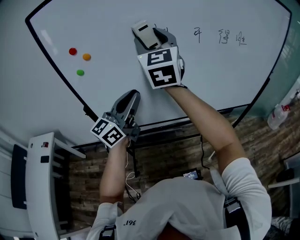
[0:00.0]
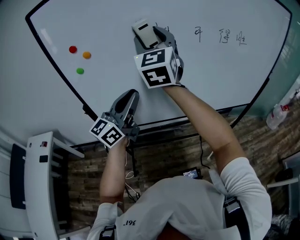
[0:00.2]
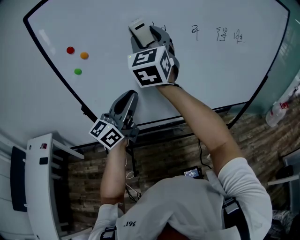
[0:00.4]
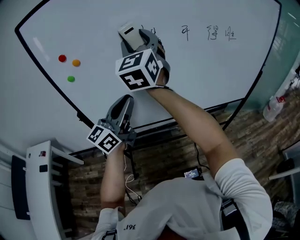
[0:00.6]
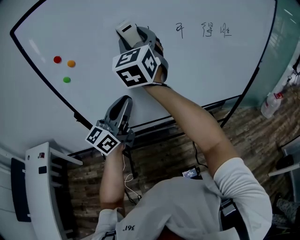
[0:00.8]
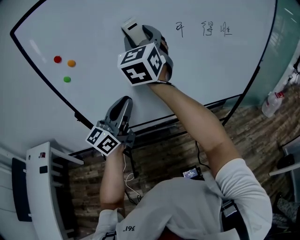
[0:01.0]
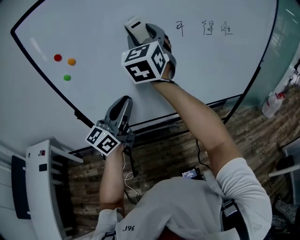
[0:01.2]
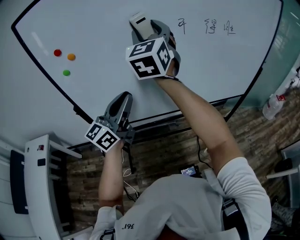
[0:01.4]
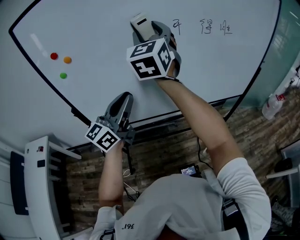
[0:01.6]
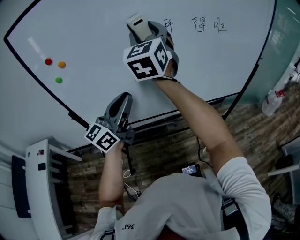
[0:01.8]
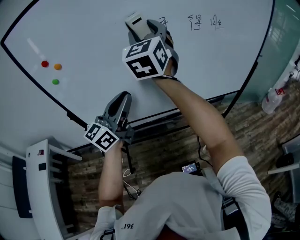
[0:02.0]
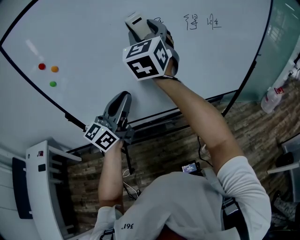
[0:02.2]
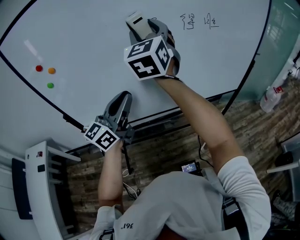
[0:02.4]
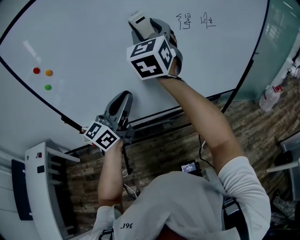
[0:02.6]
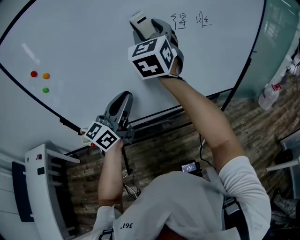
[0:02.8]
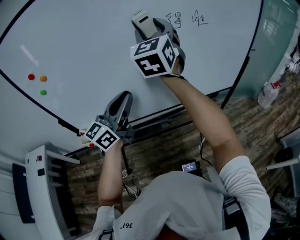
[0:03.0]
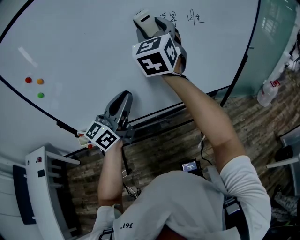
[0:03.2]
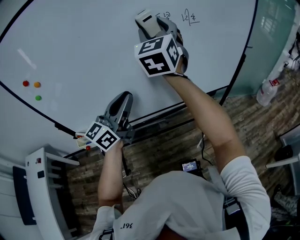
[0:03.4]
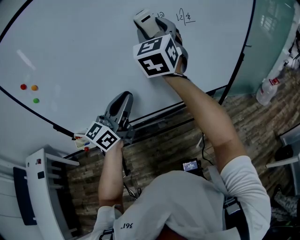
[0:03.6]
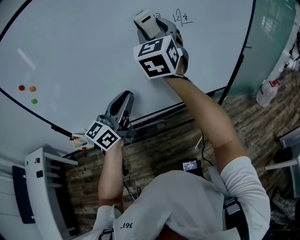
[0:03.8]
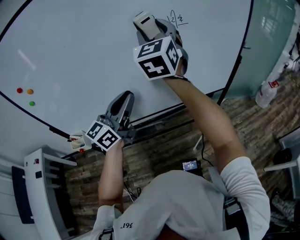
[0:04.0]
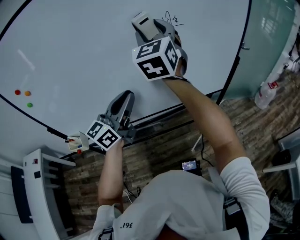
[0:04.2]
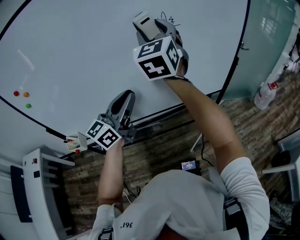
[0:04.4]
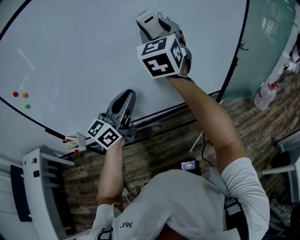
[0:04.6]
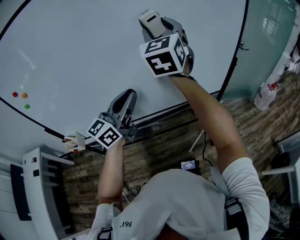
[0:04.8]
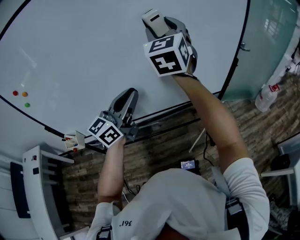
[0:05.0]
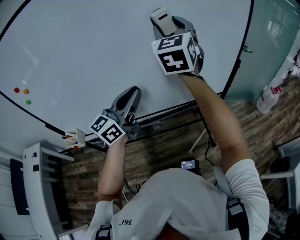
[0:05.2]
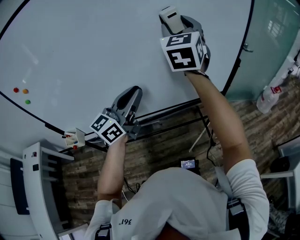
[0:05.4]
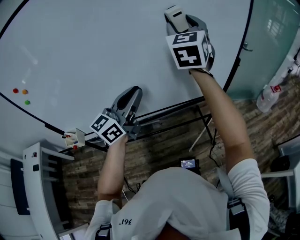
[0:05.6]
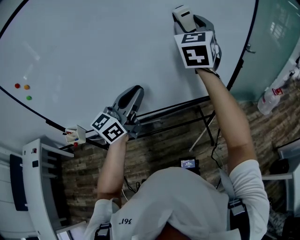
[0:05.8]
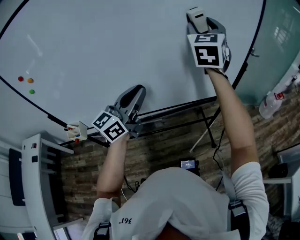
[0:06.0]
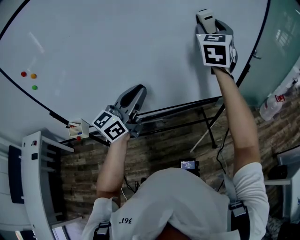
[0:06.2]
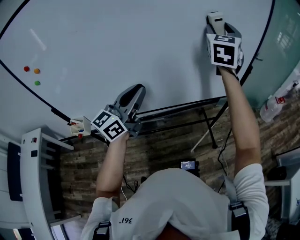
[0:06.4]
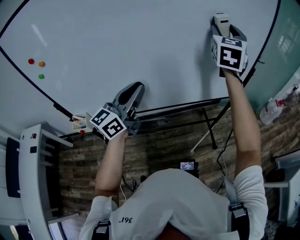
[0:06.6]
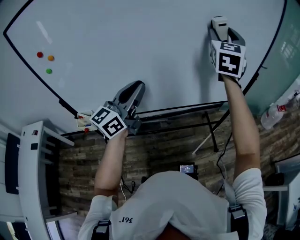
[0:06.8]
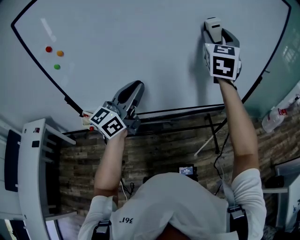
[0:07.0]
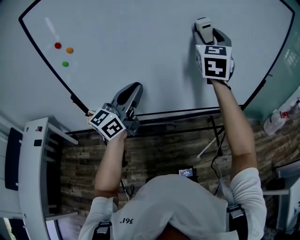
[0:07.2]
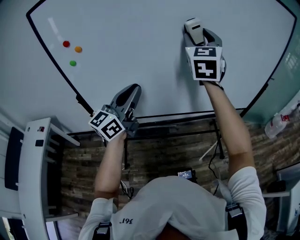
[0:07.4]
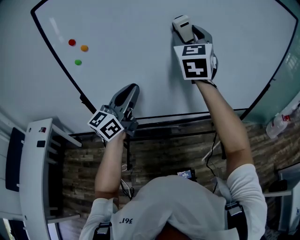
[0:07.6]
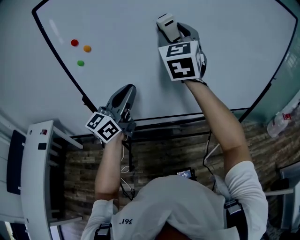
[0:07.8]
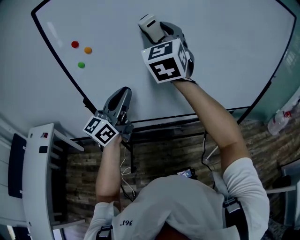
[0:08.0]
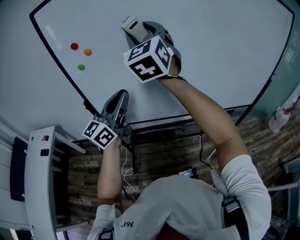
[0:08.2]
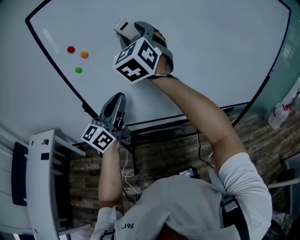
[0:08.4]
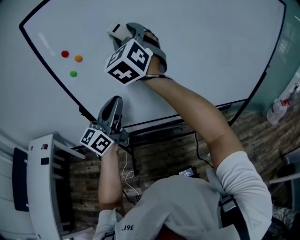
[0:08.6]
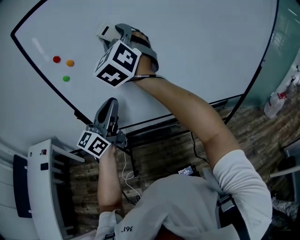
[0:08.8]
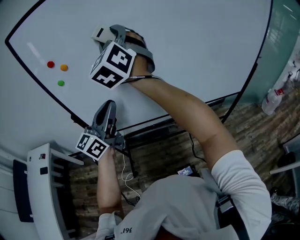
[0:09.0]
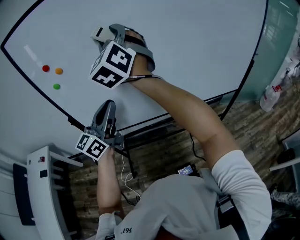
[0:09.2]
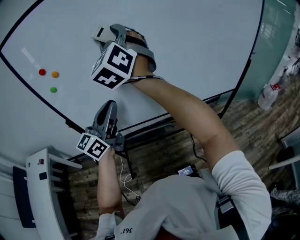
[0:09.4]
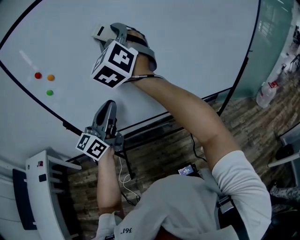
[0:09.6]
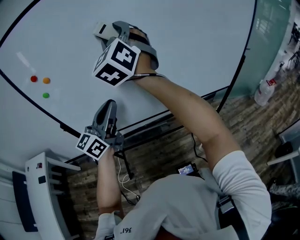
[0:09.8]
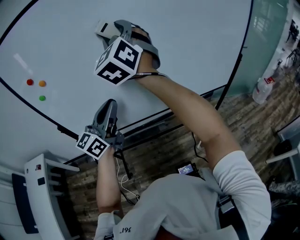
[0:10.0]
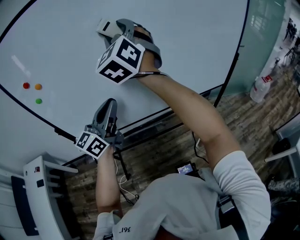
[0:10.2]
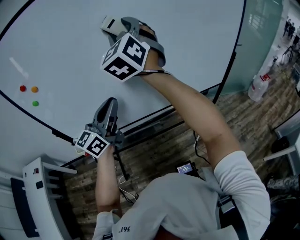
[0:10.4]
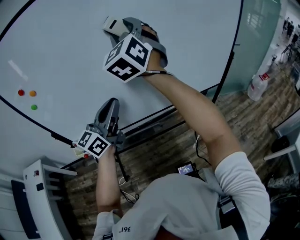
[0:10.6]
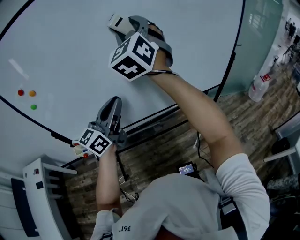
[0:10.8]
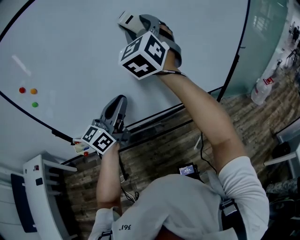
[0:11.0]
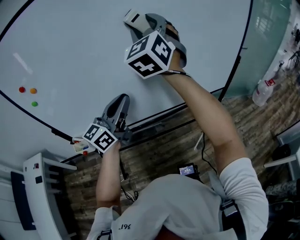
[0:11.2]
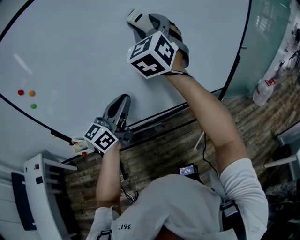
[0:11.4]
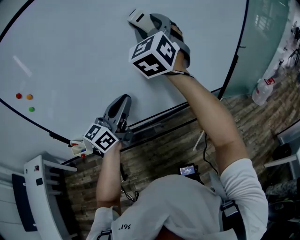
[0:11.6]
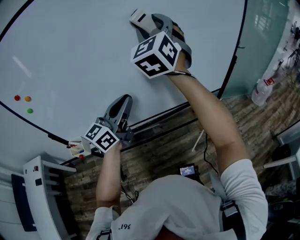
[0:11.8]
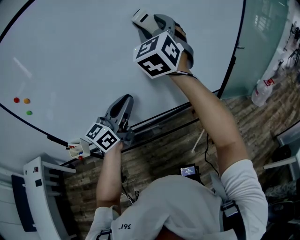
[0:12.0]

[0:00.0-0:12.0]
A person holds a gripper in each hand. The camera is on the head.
0:00.0 to 0:01.6: The right gripper travels to the right by approximately 5 cm.
0:01.6 to 0:03.0: Both grippers move to the right and forward, some 10 cm.
0:03.0 to 0:04.4: Both grippers travel together to the right and forward, approximately 15 cm.
0:04.4 to 0:06.0: The right gripper heads to the right and forward, covering approximately 15 cm.
0:06.0 to 0:07.6: Both grippers move to the left and backward, approximately 30 cm.
0:07.6 to 0:09.0: The right gripper shifts roughly 20 cm to the left, while the left gripper moves to the left, about 5 cm.
0:09.0 to 0:10.4: The left gripper is displaced to the right and forward by approximately 15 cm. Meanwhile the right gripper travels to the right by about 20 cm.
0:10.4 to 0:12.0: The grippers both shift to the right and forward by some 15 cm.

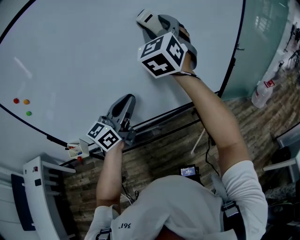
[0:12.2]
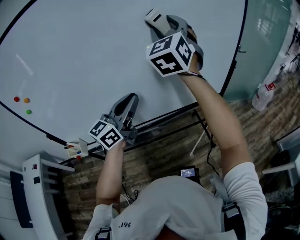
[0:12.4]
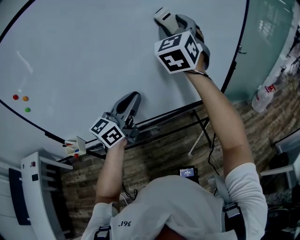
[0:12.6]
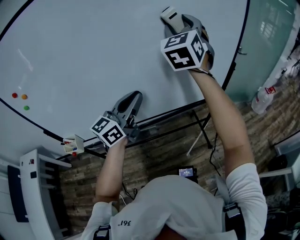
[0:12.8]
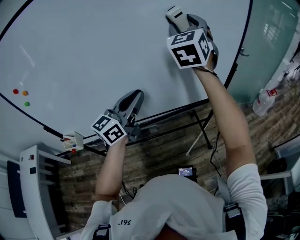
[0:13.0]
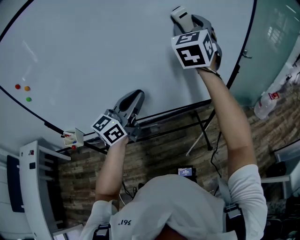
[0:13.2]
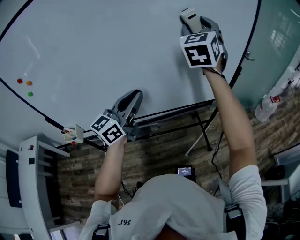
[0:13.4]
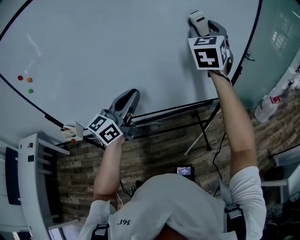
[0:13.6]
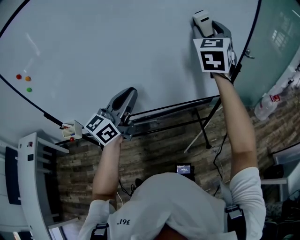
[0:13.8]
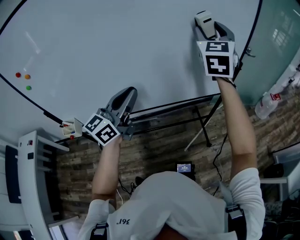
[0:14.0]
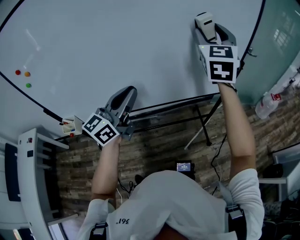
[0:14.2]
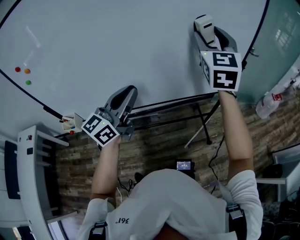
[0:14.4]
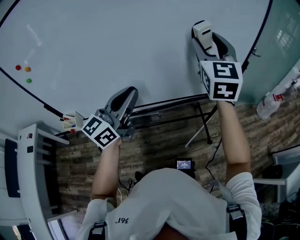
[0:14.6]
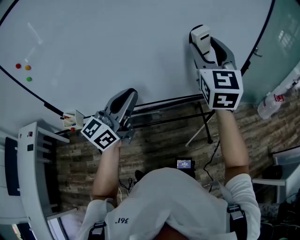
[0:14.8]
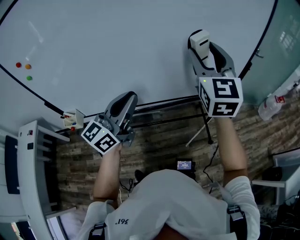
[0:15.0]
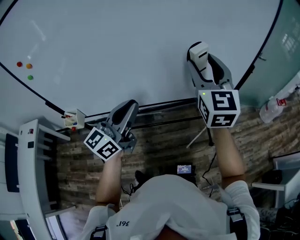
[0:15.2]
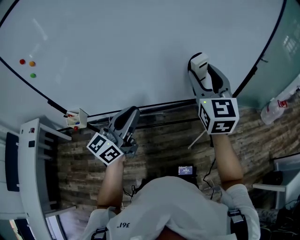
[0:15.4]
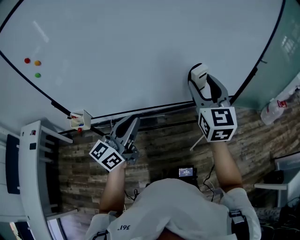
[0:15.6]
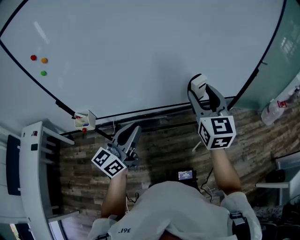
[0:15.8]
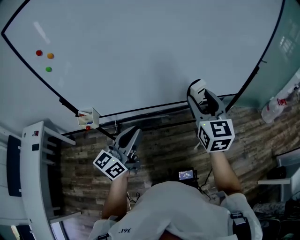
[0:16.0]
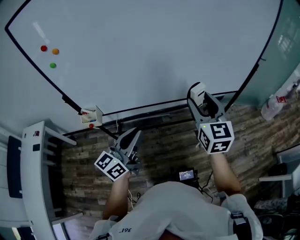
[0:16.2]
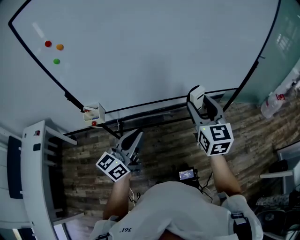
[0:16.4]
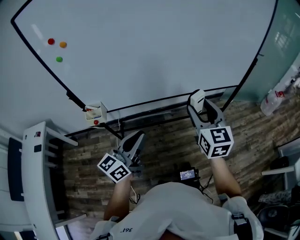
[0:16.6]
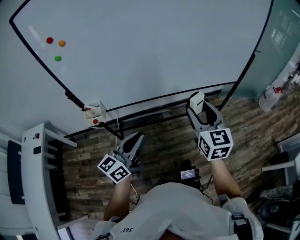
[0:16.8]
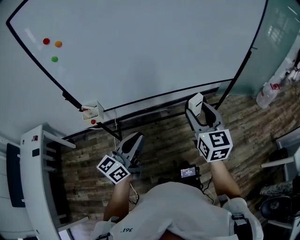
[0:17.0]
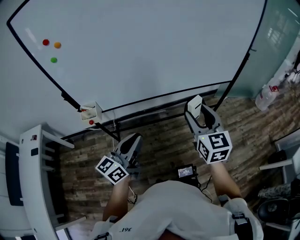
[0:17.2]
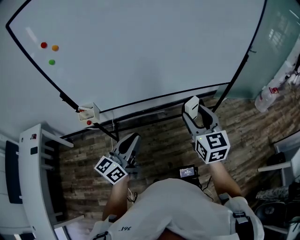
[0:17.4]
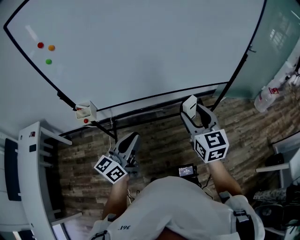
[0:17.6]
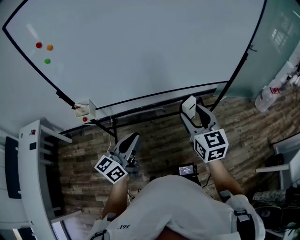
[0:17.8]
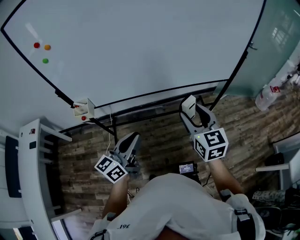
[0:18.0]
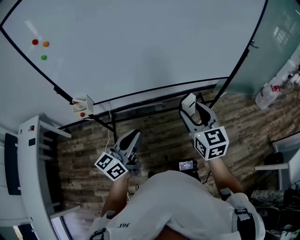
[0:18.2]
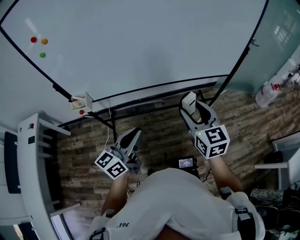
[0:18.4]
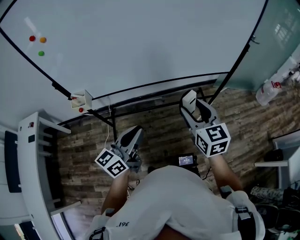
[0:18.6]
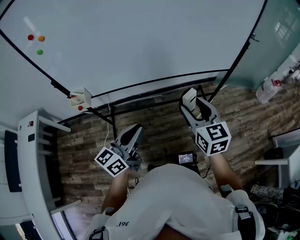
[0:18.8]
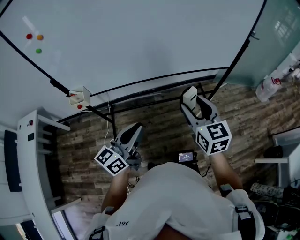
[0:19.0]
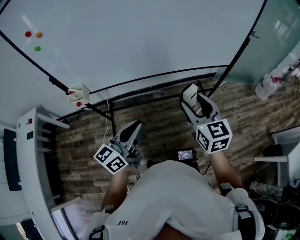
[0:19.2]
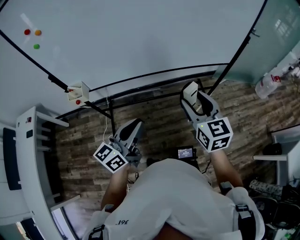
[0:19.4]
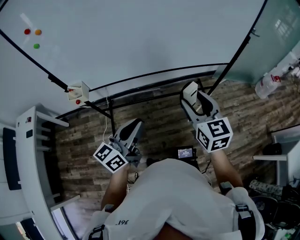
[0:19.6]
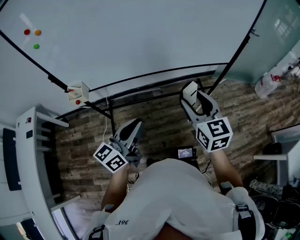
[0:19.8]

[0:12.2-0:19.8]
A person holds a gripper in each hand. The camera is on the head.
0:12.2 to 0:13.8: The right gripper is displaced to the right by about 15 cm.
0:13.8 to 0:15.2: The left gripper goes approximately 5 cm backward. The right gripper is displaced downward, backward and to the left by roughly 15 cm, and swivels roughly 20 degrees.
0:15.2 to 0:16.8: The right gripper is displaced backward, downward and to the left by some 30 cm. The left gripper heads backward, to the left and downward, covering approximately 25 cm.
0:16.8 to 0:18.2: Both grippers move to the right, about 10 cm.
0:18.2 to 0:19.8: The grippers make only small movements.

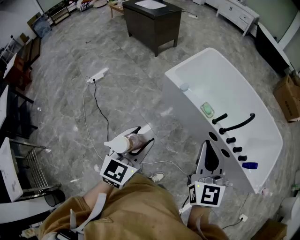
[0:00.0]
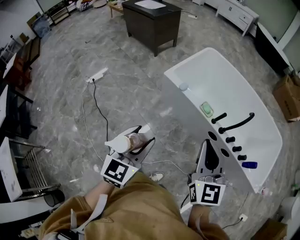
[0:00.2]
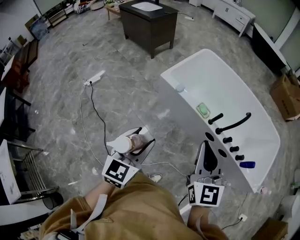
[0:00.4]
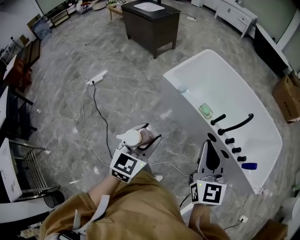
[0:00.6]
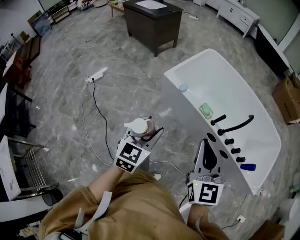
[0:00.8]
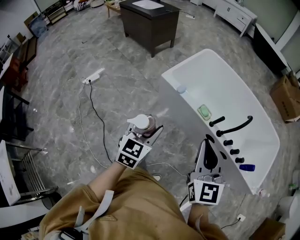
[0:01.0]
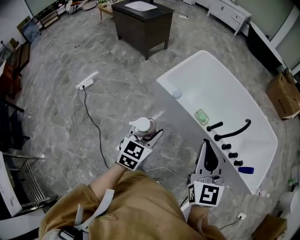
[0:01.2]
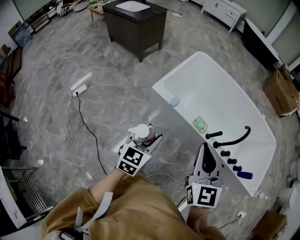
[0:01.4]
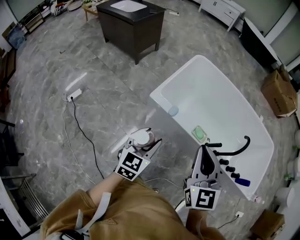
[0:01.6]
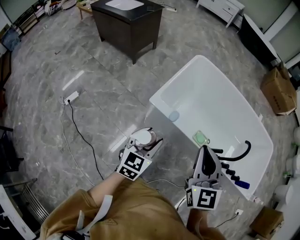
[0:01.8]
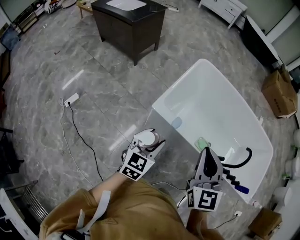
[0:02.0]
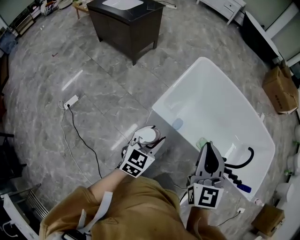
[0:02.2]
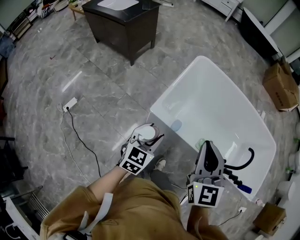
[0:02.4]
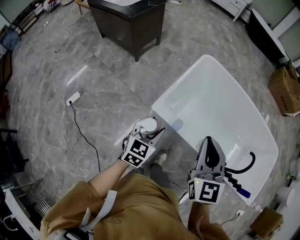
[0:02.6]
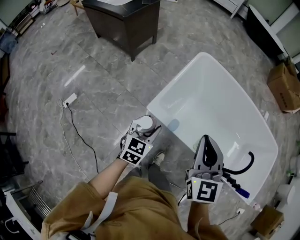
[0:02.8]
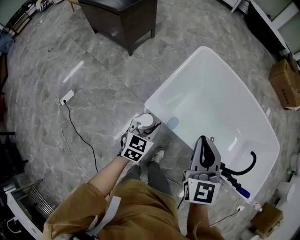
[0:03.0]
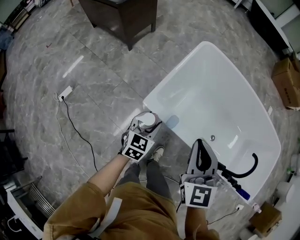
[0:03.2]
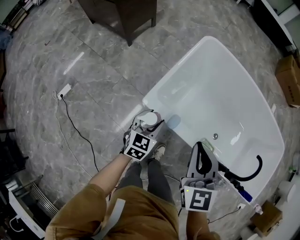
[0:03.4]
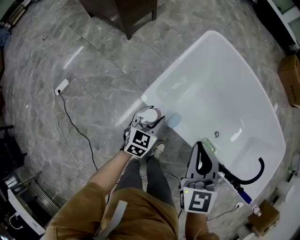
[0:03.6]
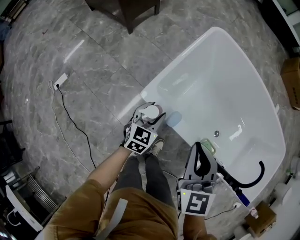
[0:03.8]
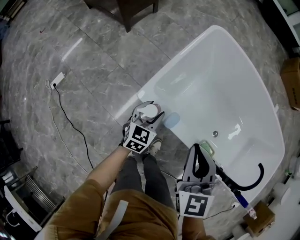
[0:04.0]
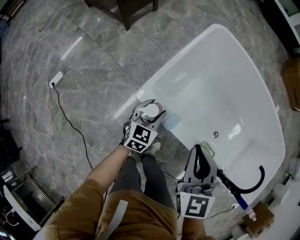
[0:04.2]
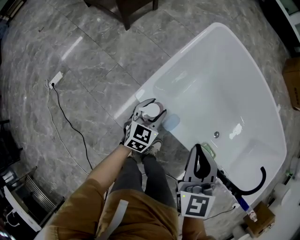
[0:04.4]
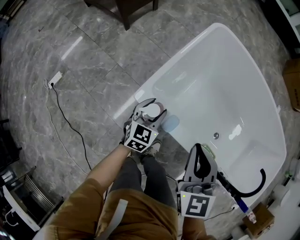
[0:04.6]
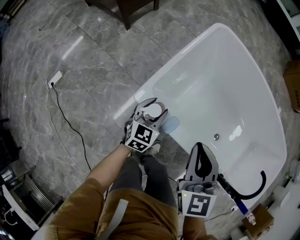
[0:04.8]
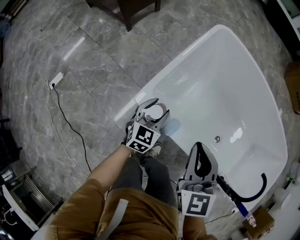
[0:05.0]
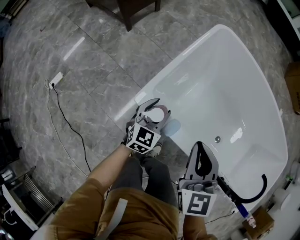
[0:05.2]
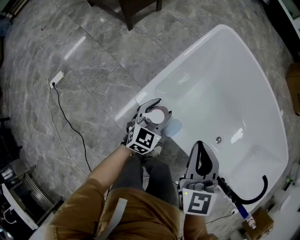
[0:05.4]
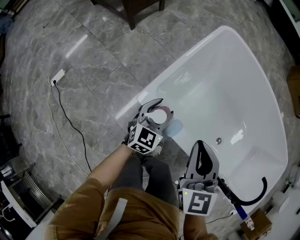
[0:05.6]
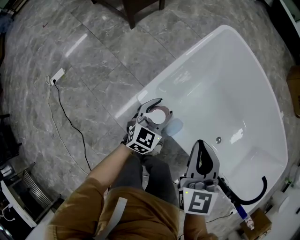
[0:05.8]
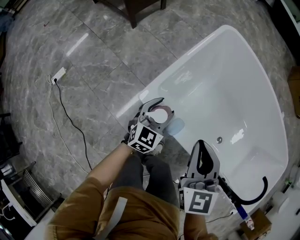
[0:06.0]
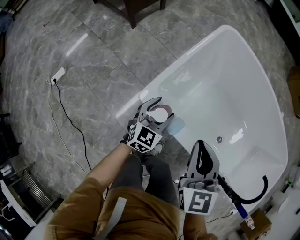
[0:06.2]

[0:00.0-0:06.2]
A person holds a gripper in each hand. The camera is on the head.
0:00.0 to 0:01.6: Both grippers travel together forward, approximately 25 cm.
0:01.6 to 0:03.2: The two grippers go about 25 cm forward and downward.
0:03.2 to 0:04.6: The two grippers go about 15 cm downward and forward.
0:04.6 to 0:06.2: There are only small adjustments of the grippers.
